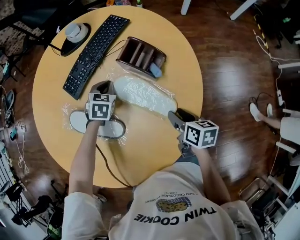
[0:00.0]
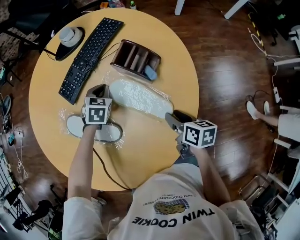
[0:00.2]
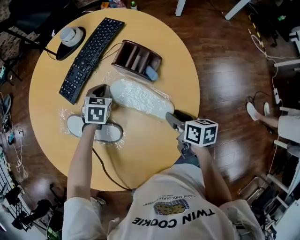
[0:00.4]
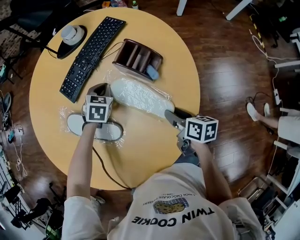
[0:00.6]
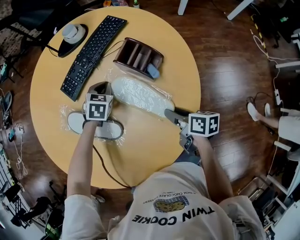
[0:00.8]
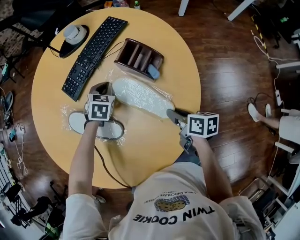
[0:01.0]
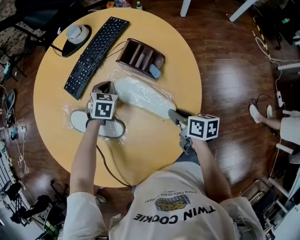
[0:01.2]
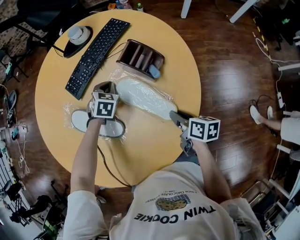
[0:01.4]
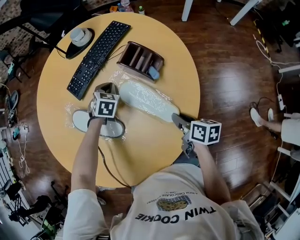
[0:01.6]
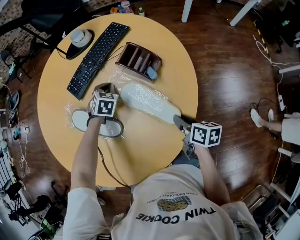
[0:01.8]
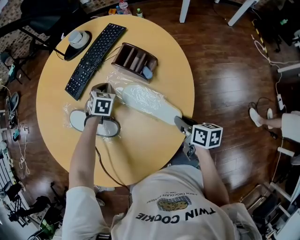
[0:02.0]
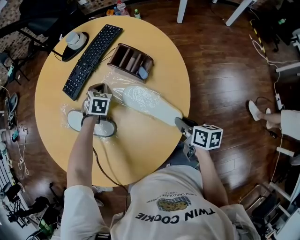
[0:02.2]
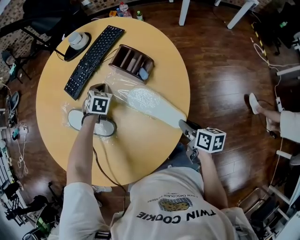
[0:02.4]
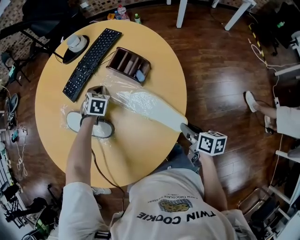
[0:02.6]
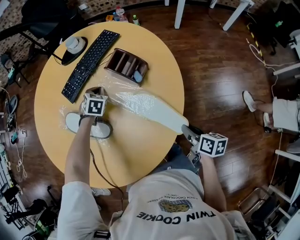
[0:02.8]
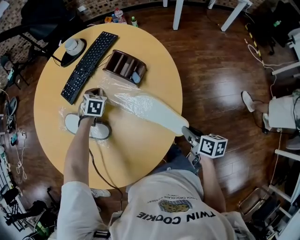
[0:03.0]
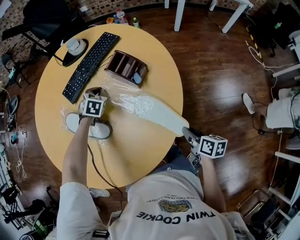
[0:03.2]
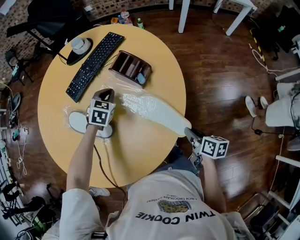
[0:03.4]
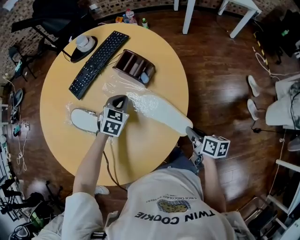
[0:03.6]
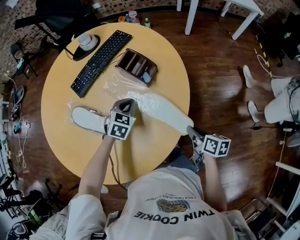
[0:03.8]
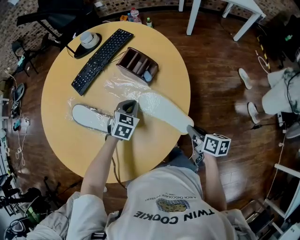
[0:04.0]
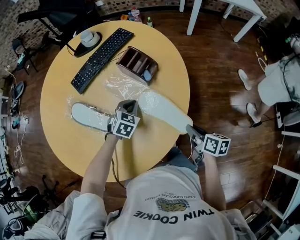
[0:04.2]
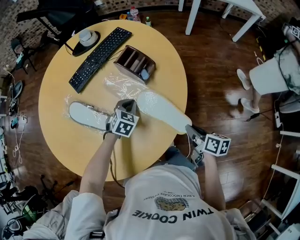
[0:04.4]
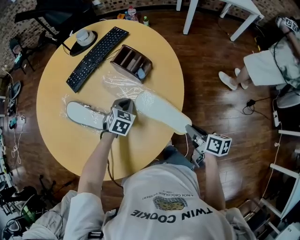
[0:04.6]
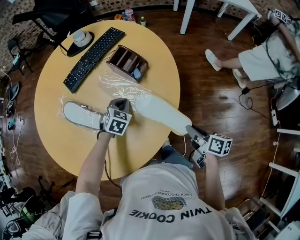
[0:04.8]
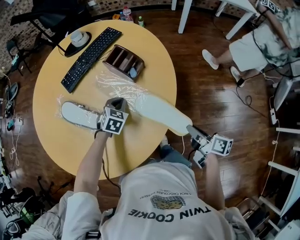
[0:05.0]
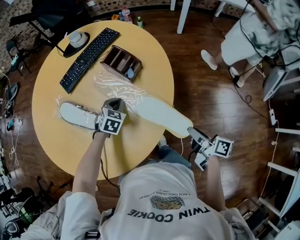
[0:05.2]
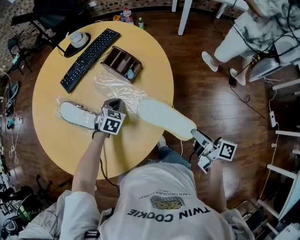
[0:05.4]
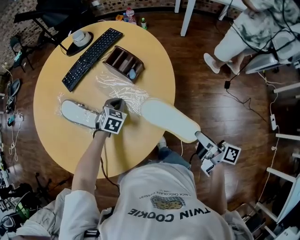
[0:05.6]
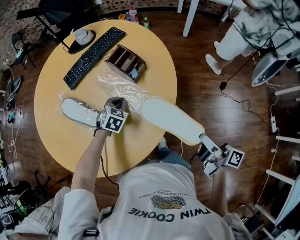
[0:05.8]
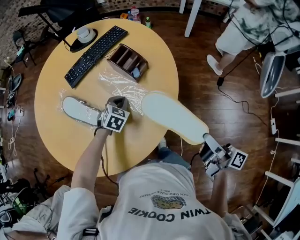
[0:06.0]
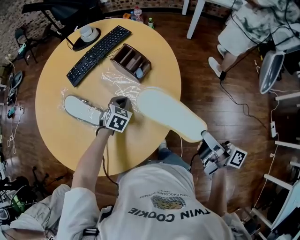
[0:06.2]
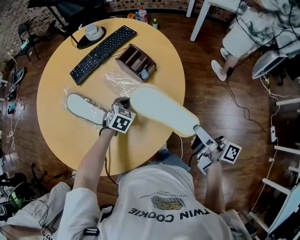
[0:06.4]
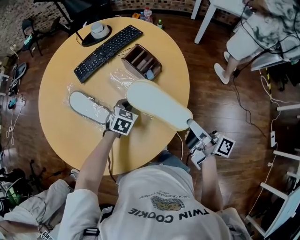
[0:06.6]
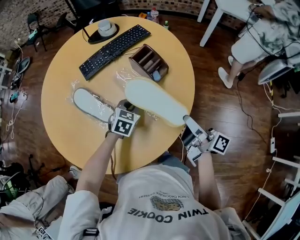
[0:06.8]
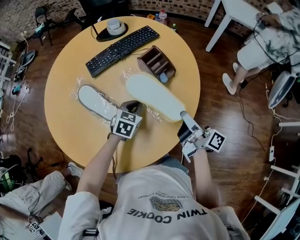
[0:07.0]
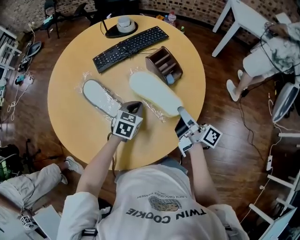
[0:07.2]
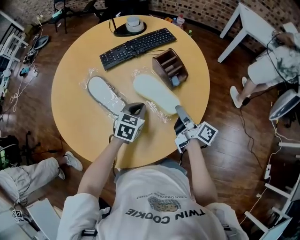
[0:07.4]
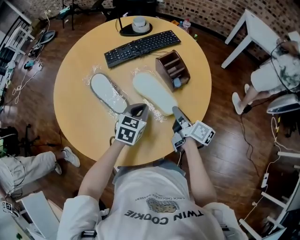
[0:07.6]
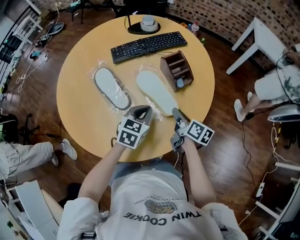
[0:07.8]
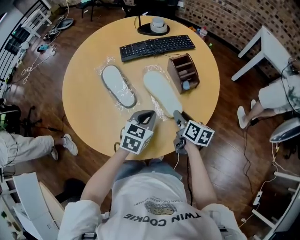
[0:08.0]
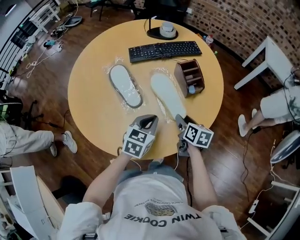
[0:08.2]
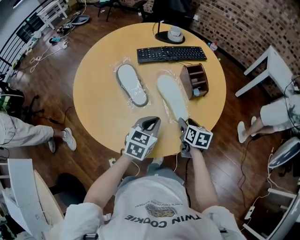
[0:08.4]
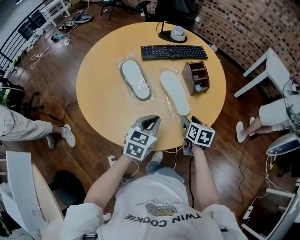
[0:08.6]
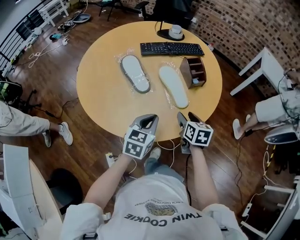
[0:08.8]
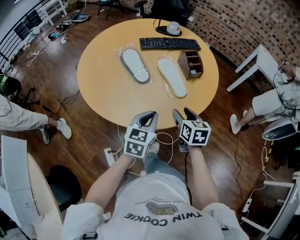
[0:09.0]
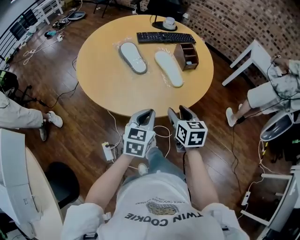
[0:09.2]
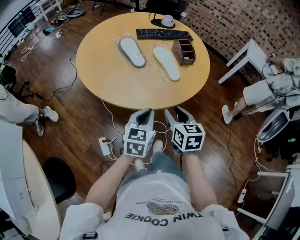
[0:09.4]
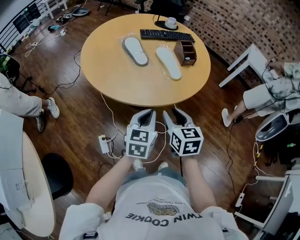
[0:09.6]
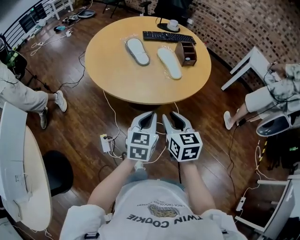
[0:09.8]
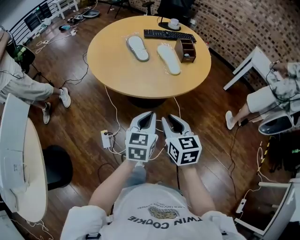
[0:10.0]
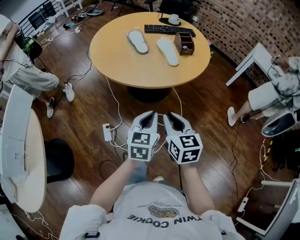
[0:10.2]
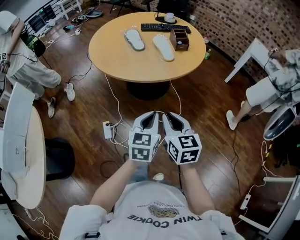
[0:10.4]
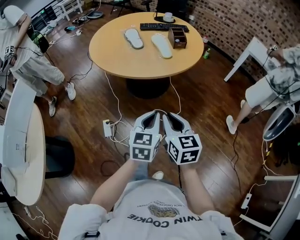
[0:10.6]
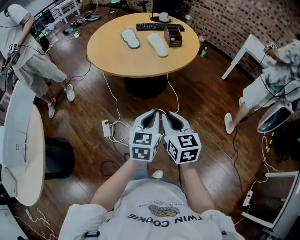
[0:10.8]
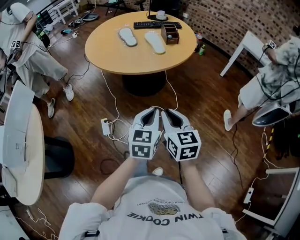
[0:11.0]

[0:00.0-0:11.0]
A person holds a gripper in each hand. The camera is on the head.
0:00.0 to 0:01.6: The right gripper closes.
0:01.6 to 0:03.2: The right gripper heads backward and to the right, covering roughly 15 cm.
0:03.2 to 0:04.8: The left gripper heads backward and to the right, covering about 15 cm.
0:04.8 to 0:06.2: The right gripper heads upward, covering roughly 15 cm, and tilts its fingers some 30 degrees upward.
0:06.2 to 0:07.8: The left gripper shifts some 10 cm upward and backward, and rotates approximately 30 degrees. The right gripper is displaced forward, to the left and downward by roughly 30 cm, and swivels roughly 30 degrees.
0:07.8 to 0:09.4: The right gripper moves backward and upward, some 30 cm, twists approximately 50 degrees counterclockwise, seen from behind, and opens its fingers. The left gripper moves backward, approximately 30 cm, and turns by roughly 30 degrees.
0:09.4 to 0:11.0: The left gripper is displaced backward and to the right by approximately 30 cm, while the right gripper heads backward, covering about 30 cm, and closes.

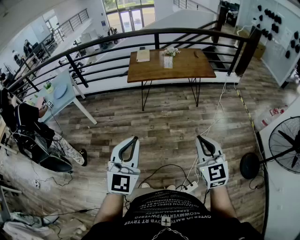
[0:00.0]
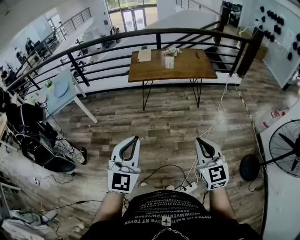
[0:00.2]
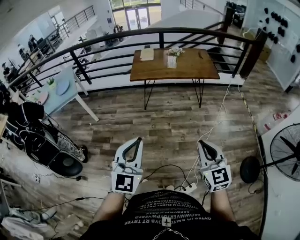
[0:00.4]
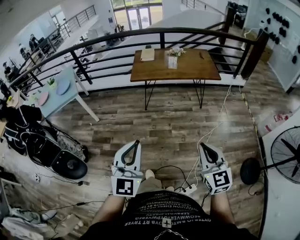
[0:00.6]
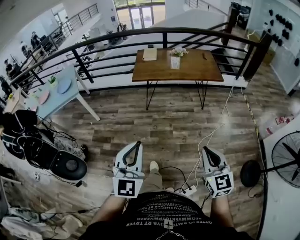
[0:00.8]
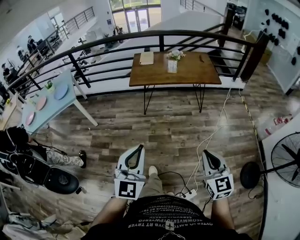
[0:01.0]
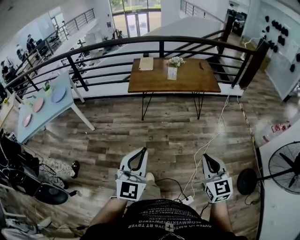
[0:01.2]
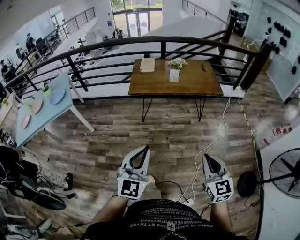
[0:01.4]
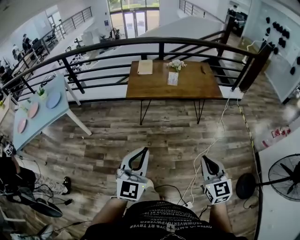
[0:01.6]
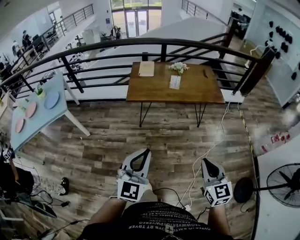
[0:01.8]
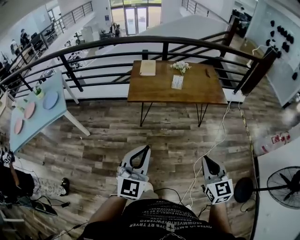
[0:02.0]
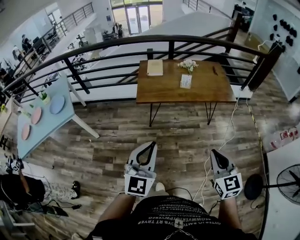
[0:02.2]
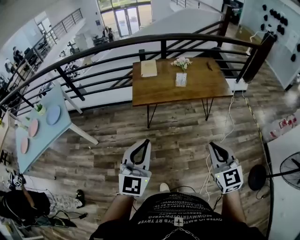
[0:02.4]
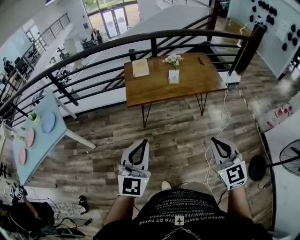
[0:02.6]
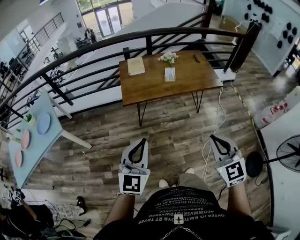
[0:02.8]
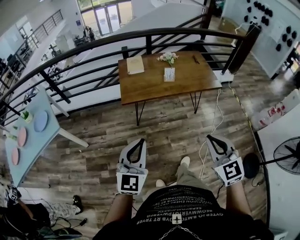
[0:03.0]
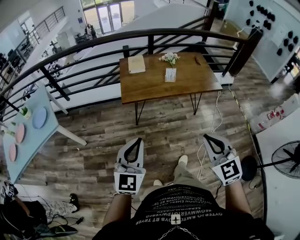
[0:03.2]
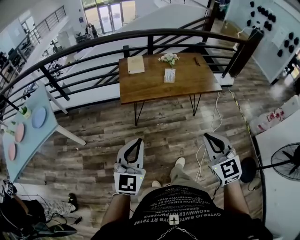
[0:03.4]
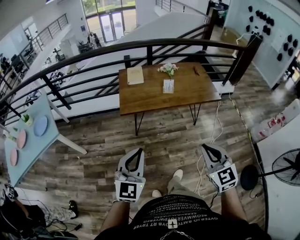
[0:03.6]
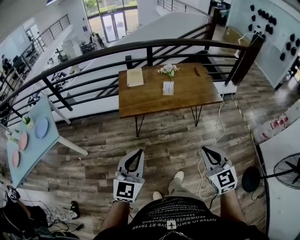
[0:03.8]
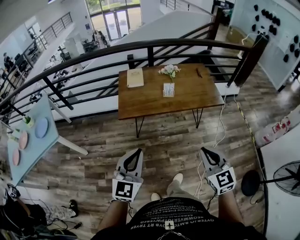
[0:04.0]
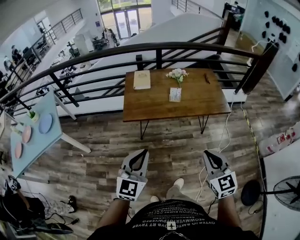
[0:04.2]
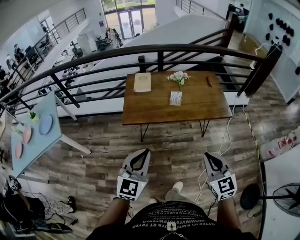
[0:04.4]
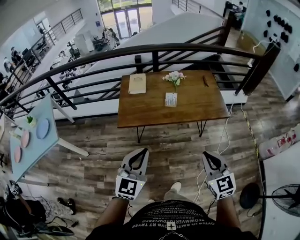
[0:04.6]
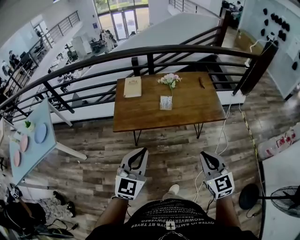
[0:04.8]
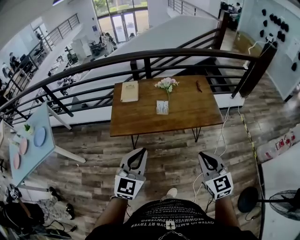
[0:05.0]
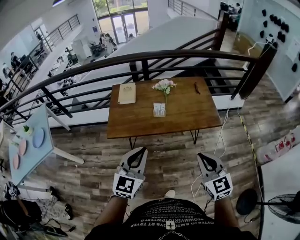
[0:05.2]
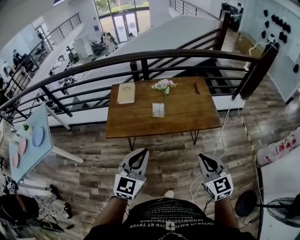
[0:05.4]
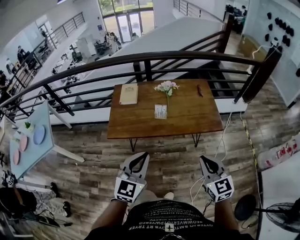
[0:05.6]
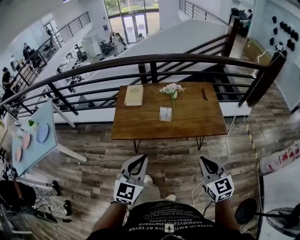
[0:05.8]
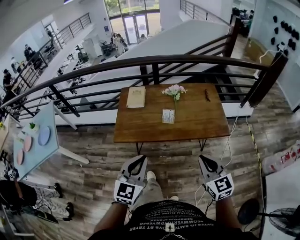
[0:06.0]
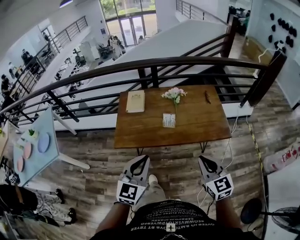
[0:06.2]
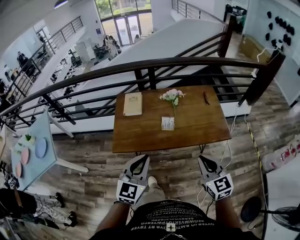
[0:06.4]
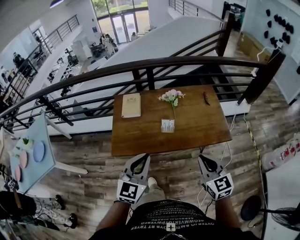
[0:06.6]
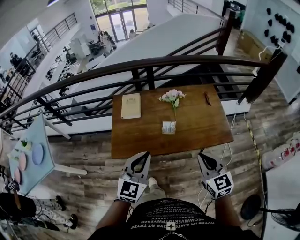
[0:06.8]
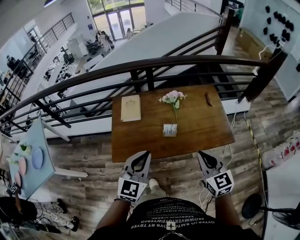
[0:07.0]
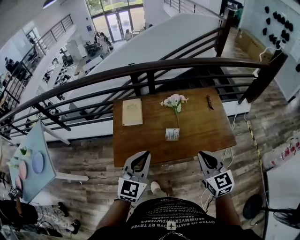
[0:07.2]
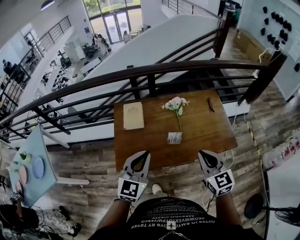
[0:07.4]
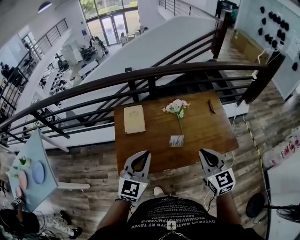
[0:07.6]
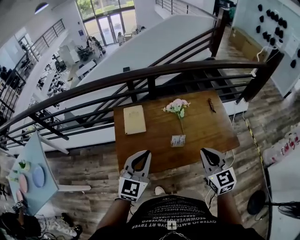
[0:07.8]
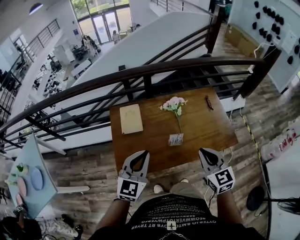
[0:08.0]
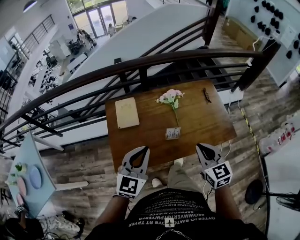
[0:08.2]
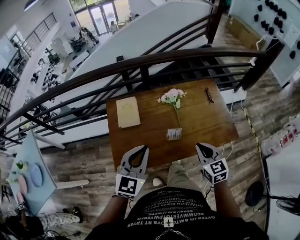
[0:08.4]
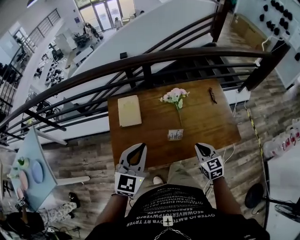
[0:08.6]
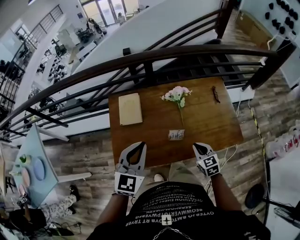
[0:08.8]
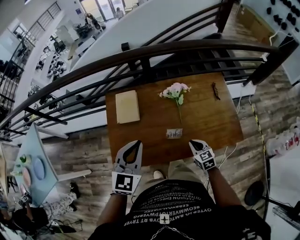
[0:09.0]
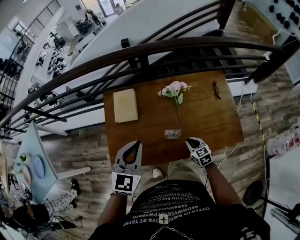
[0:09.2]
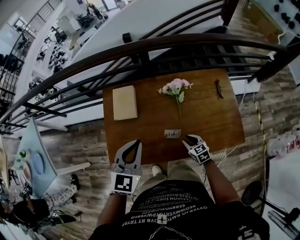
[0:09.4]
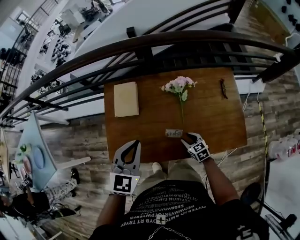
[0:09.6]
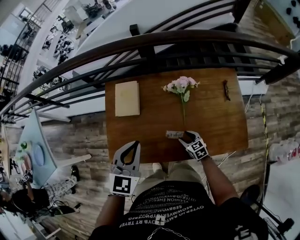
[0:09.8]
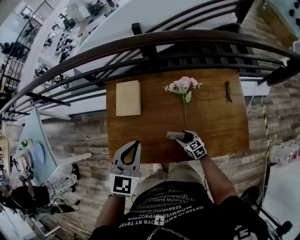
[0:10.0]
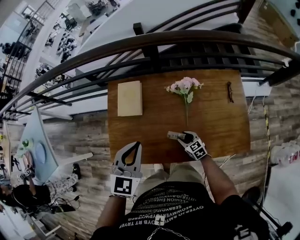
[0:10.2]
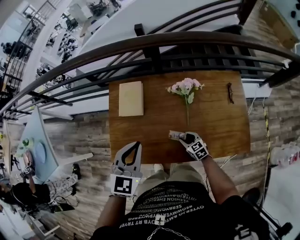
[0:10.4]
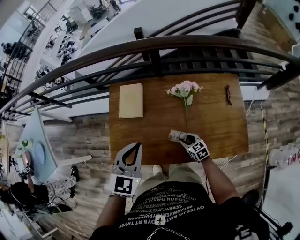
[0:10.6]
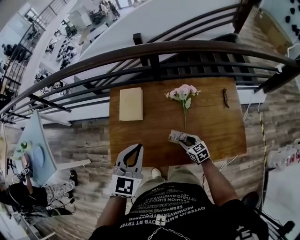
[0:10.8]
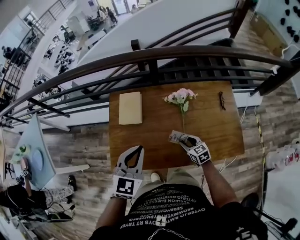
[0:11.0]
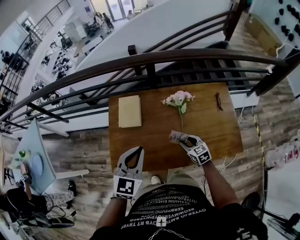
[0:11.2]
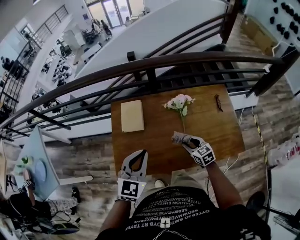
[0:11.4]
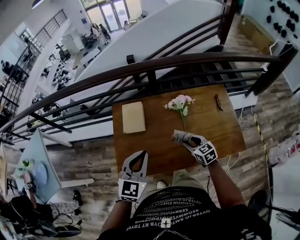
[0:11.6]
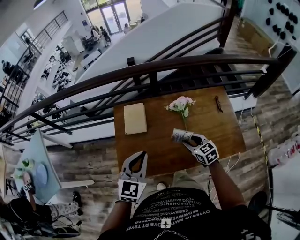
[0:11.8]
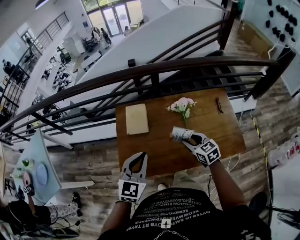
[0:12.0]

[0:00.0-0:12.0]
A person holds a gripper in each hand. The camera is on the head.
0:00.0 to 0:01.6: Both grippers travel together forward, some 15 cm.
0:01.6 to 0:03.0: The two grippers go roughly 20 cm forward and to the left.
0:03.0 to 0:04.4: The grippers both shift forward and to the right by approximately 15 cm.
0:04.4 to 0:06.0: The grippers both shift forward and to the right by roughly 15 cm.
0:06.0 to 0:07.6: The left gripper travels forward by approximately 25 cm; the right gripper shifts about 25 cm forward and to the left.
0:07.6 to 0:09.0: The left gripper is displaced forward by about 10 cm. Meanwhile the right gripper goes some 30 cm downward, and changes its angle by some 20 degrees.
0:09.0 to 0:10.4: The right gripper goes approximately 15 cm downward and forward, and opens up. The left gripper moves roughly 5 cm.
0:10.4 to 0:12.0: The left gripper ends up some 10 cm from where it was. The right gripper moves upward, some 25 cm.

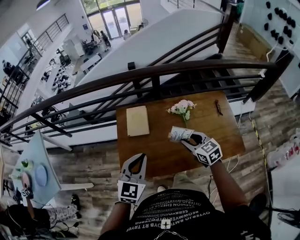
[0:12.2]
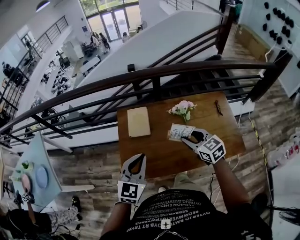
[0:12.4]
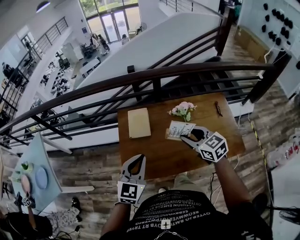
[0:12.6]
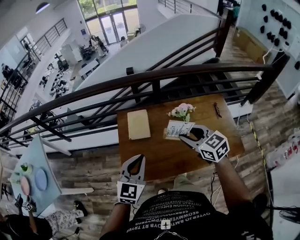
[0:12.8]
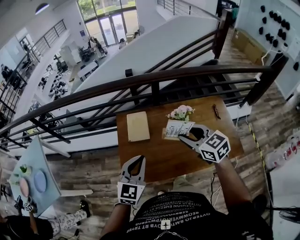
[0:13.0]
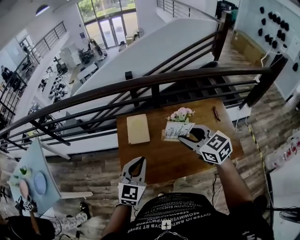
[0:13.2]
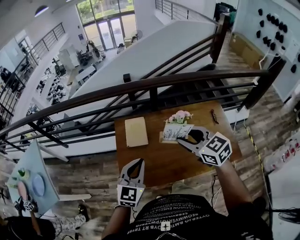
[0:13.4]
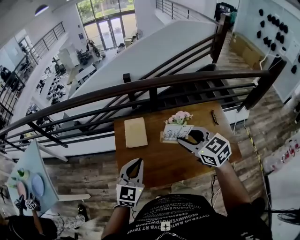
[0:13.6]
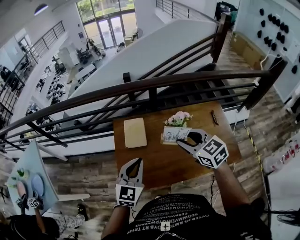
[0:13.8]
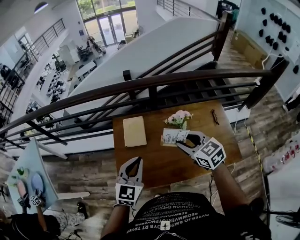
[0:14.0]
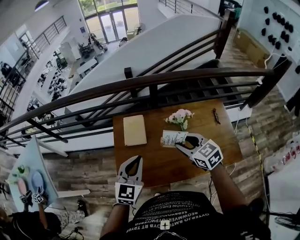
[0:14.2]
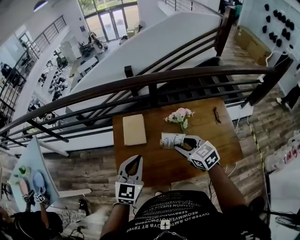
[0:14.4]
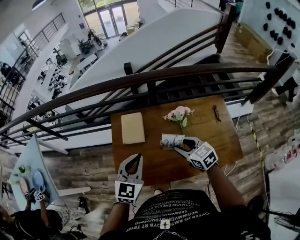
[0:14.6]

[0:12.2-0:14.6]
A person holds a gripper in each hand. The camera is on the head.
0:12.2 to 0:13.4: The right gripper travels upward by some 15 cm.
0:13.4 to 0:14.6: The left gripper shifts by approximately 5 cm. Meanwhile the right gripper shifts some 15 cm downward.
